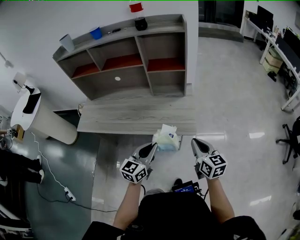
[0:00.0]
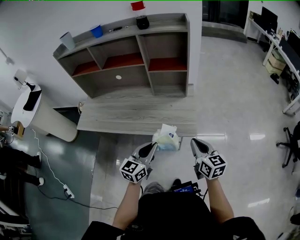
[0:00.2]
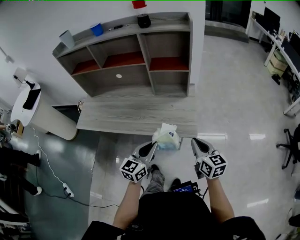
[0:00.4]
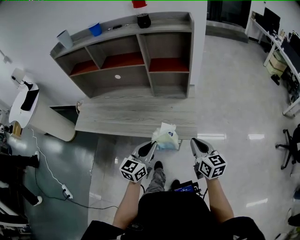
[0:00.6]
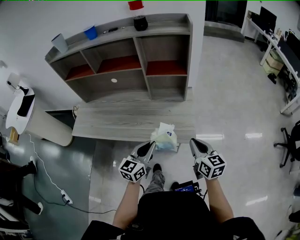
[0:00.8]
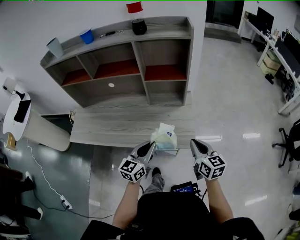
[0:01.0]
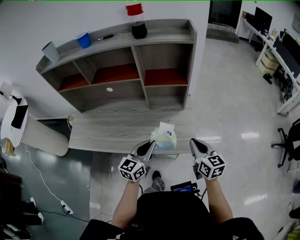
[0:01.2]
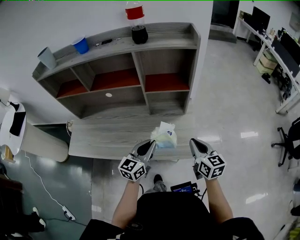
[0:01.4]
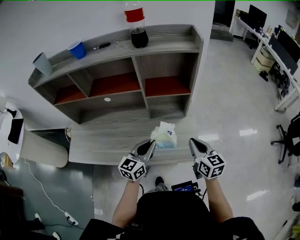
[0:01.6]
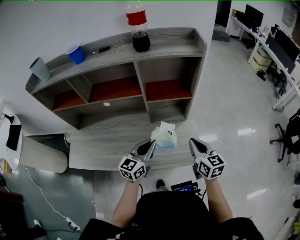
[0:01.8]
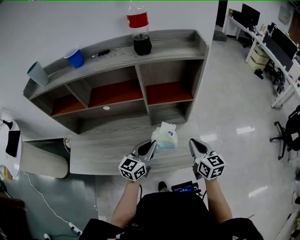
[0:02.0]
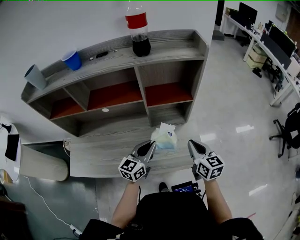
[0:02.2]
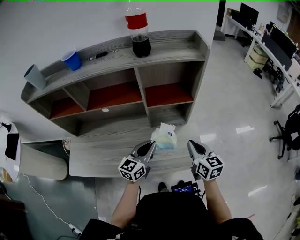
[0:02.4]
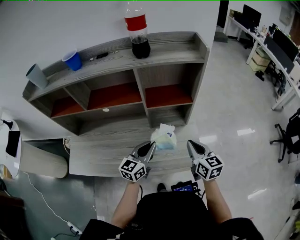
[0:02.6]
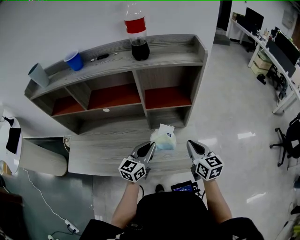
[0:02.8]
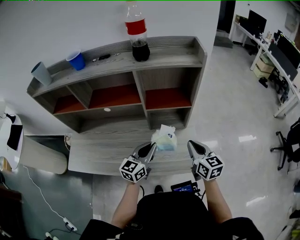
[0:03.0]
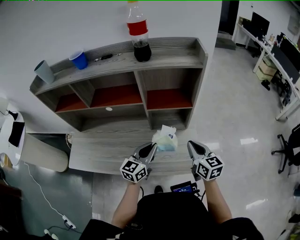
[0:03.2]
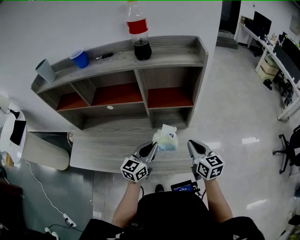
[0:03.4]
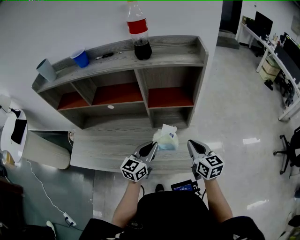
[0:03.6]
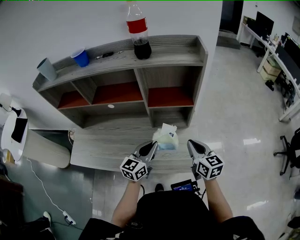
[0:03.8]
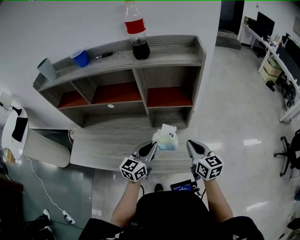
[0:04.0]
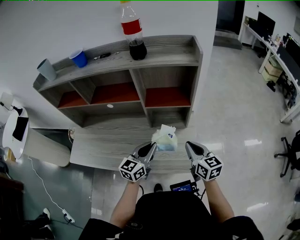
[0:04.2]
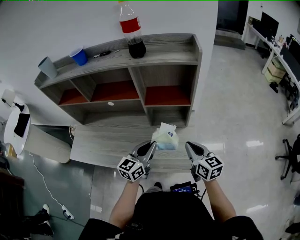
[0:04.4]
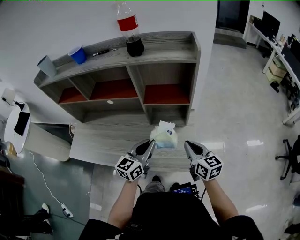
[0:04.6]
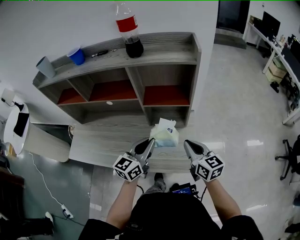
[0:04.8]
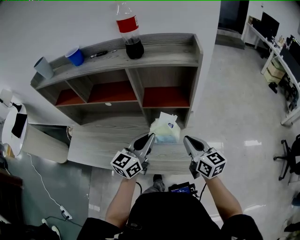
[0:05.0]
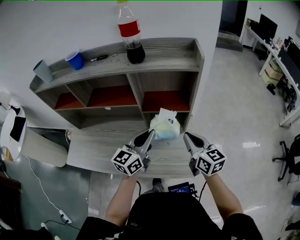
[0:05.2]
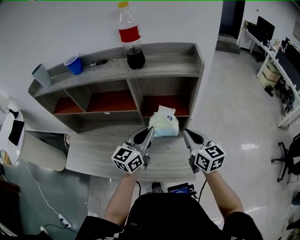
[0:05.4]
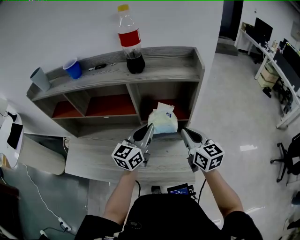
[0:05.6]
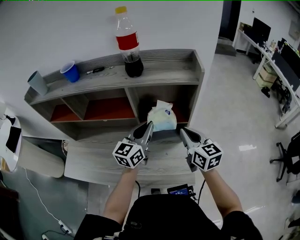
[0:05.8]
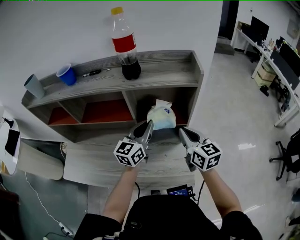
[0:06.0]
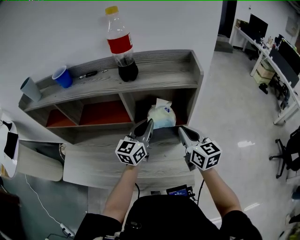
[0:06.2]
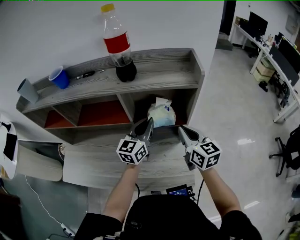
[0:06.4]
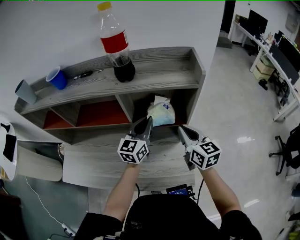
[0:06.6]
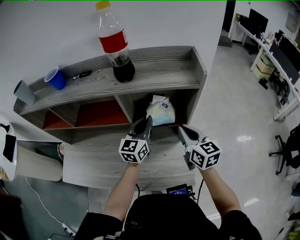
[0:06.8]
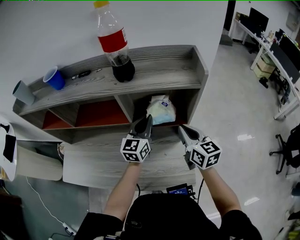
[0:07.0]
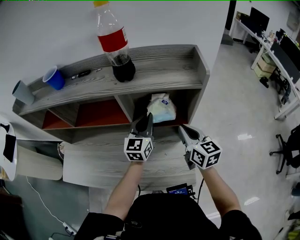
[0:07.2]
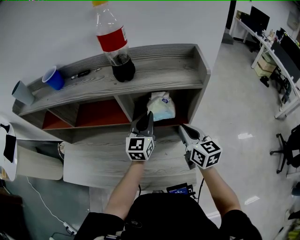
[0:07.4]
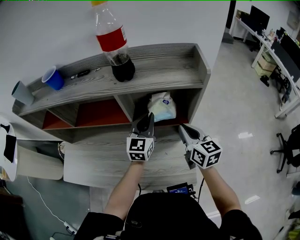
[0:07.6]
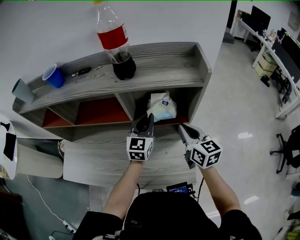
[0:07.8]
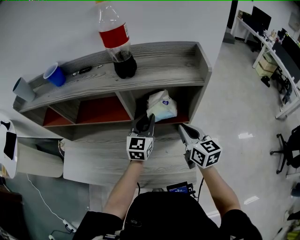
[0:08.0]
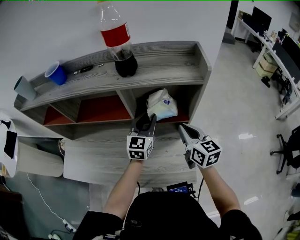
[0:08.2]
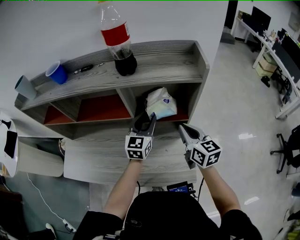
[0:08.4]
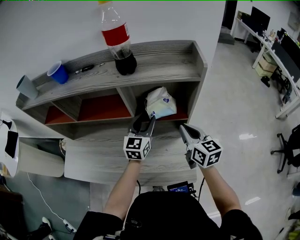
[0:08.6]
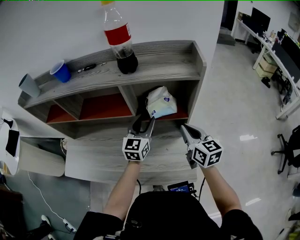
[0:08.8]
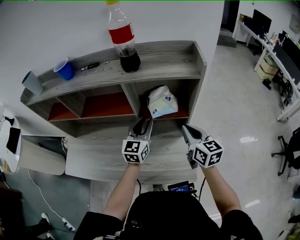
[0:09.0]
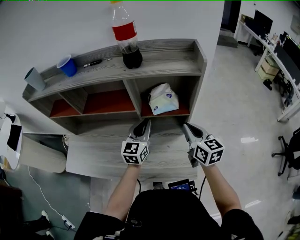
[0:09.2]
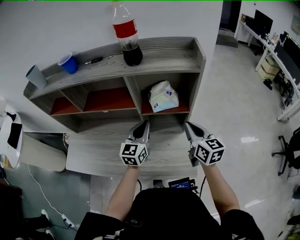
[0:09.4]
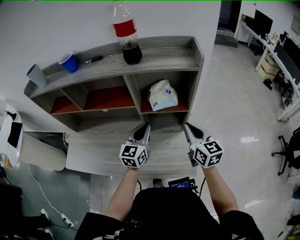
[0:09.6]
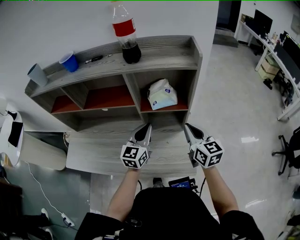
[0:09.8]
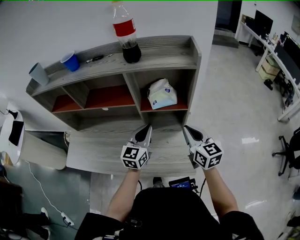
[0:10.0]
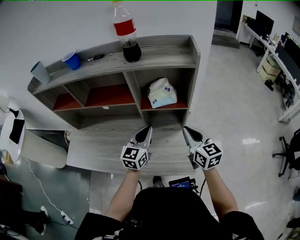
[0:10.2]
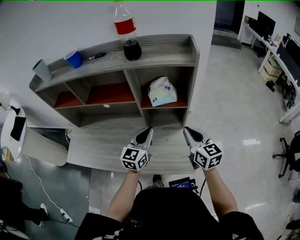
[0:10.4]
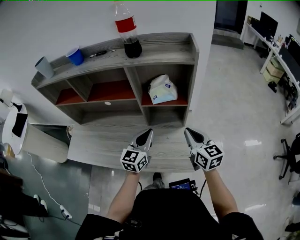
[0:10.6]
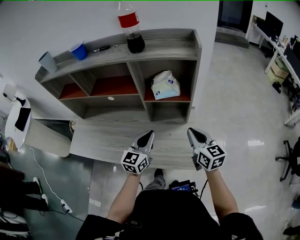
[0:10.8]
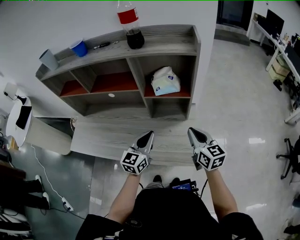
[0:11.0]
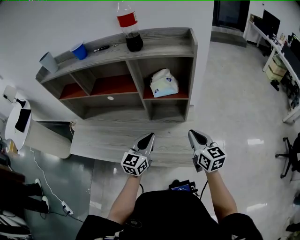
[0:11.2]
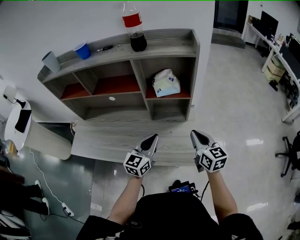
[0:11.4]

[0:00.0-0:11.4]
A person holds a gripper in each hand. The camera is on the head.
0:00.0 to 0:01.4: Both grippers move forward, approximately 20 cm.
0:01.4 to 0:02.8: Both grippers travel together forward, approximately 10 cm.
0:02.8 to 0:04.2: The grippers stay close to where they were, moving slightly.
0:04.2 to 0:05.6: The two grippers go some 15 cm forward and upward.
0:05.6 to 0:07.2: The left gripper is displaced forward by some 10 cm. Meanwhile the right gripper goes approximately 5 cm forward.
0:07.2 to 0:08.6: The left gripper opens.
0:08.6 to 0:10.0: The left gripper heads backward, covering some 10 cm, and closes its fingers, while the right gripper is displaced backward by about 5 cm.
0:10.0 to 0:11.4: The grippers both shift backward by approximately 10 cm.

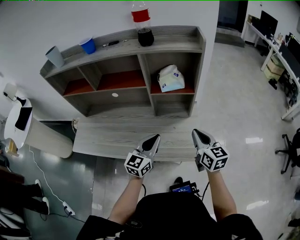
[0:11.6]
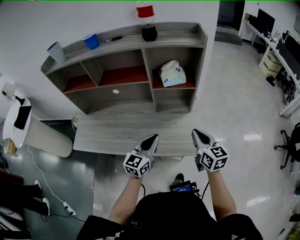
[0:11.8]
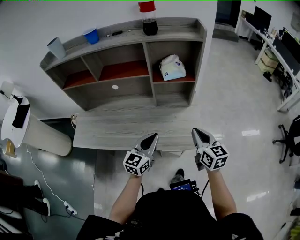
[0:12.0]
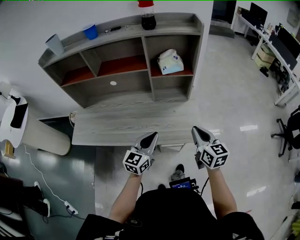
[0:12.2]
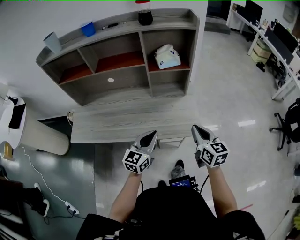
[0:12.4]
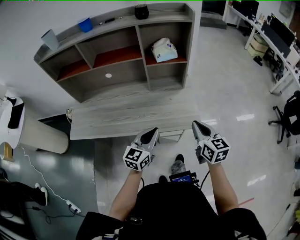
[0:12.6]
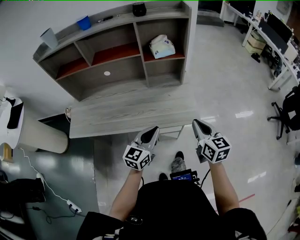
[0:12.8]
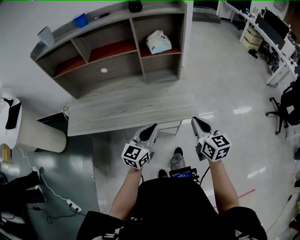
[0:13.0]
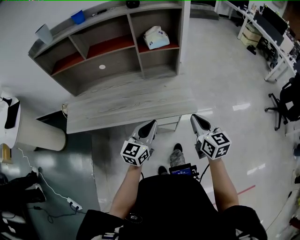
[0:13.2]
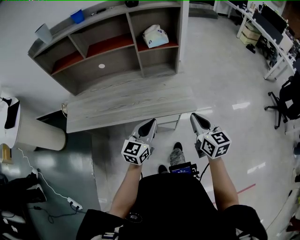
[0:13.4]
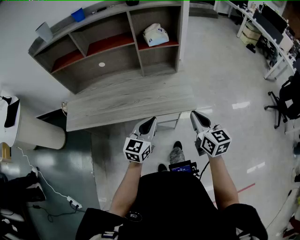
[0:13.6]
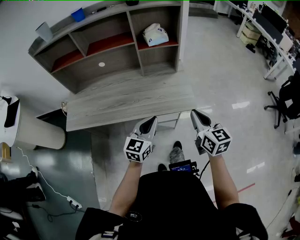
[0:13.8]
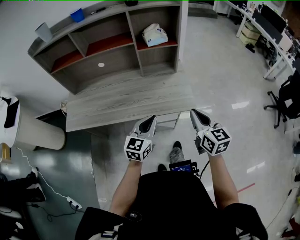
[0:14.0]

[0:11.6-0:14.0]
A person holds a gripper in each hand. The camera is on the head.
0:11.6 to 0:12.8: The grippers both shift backward by about 15 cm.
0:12.8 to 0:14.0: The grippers stay close to where they were, moving slightly.

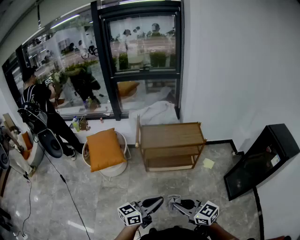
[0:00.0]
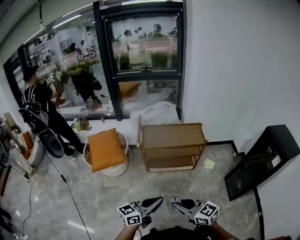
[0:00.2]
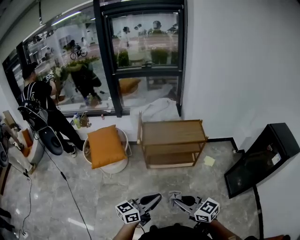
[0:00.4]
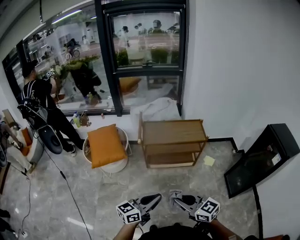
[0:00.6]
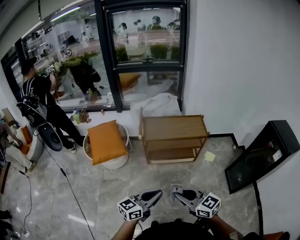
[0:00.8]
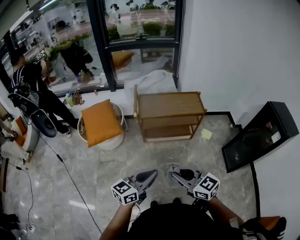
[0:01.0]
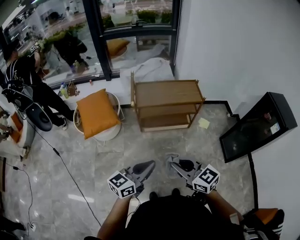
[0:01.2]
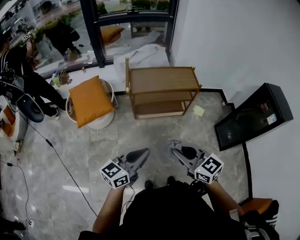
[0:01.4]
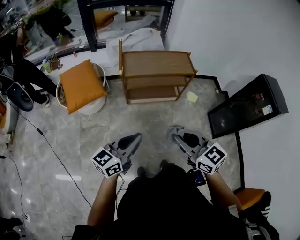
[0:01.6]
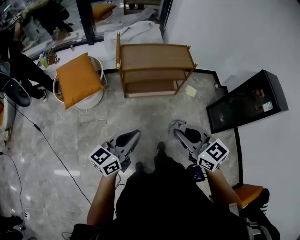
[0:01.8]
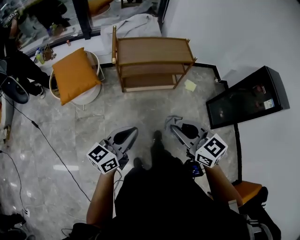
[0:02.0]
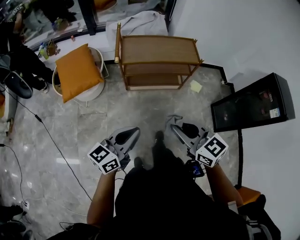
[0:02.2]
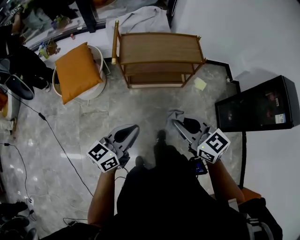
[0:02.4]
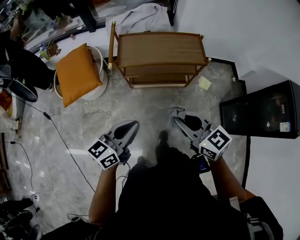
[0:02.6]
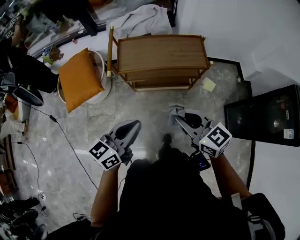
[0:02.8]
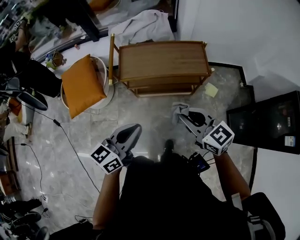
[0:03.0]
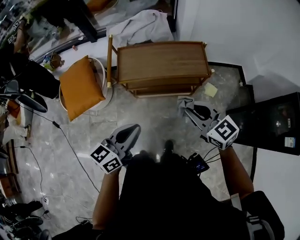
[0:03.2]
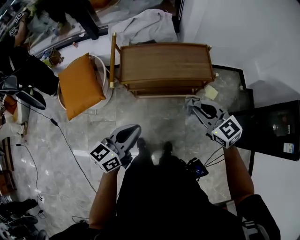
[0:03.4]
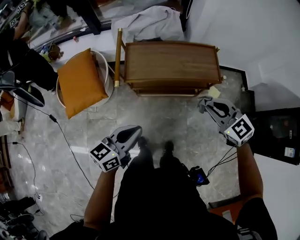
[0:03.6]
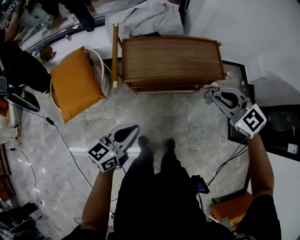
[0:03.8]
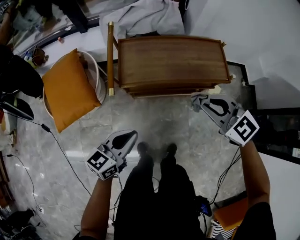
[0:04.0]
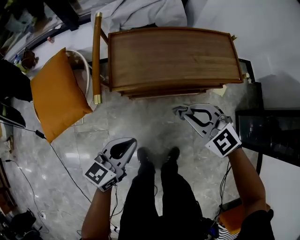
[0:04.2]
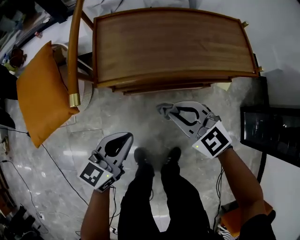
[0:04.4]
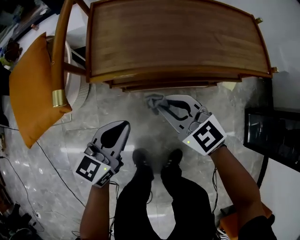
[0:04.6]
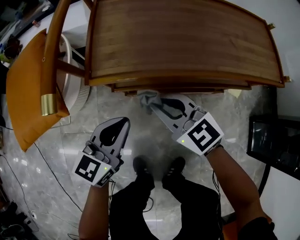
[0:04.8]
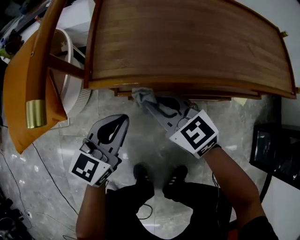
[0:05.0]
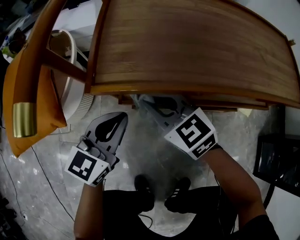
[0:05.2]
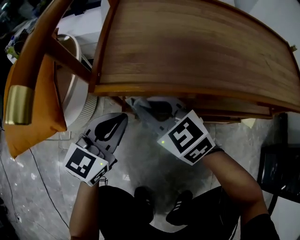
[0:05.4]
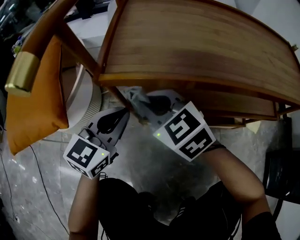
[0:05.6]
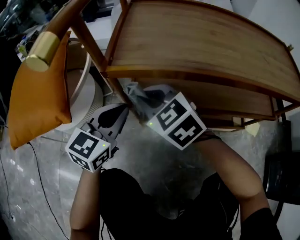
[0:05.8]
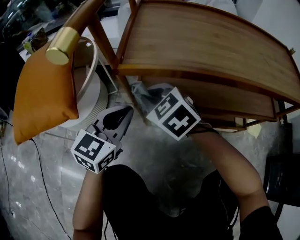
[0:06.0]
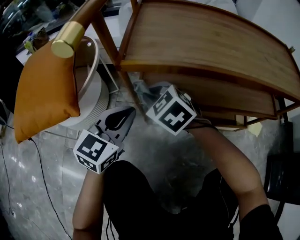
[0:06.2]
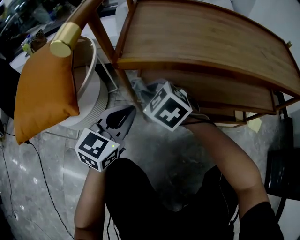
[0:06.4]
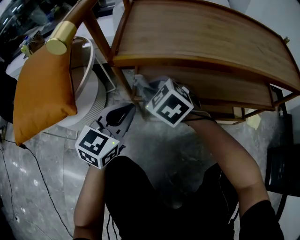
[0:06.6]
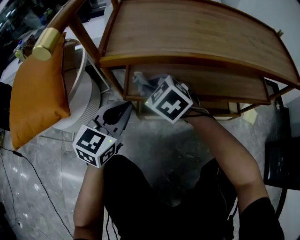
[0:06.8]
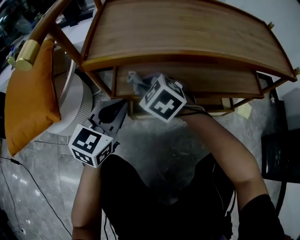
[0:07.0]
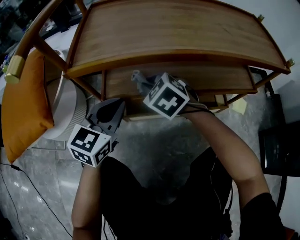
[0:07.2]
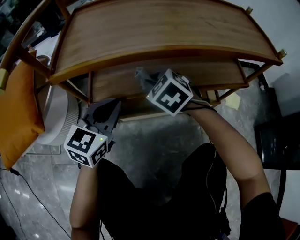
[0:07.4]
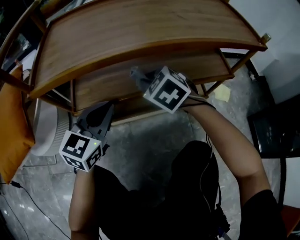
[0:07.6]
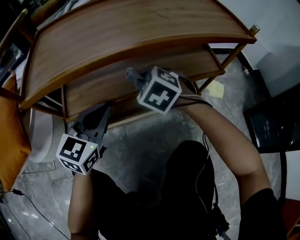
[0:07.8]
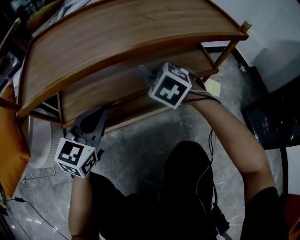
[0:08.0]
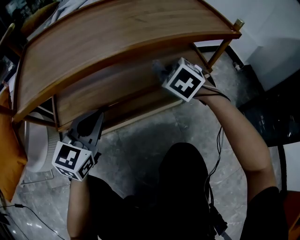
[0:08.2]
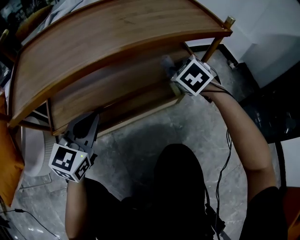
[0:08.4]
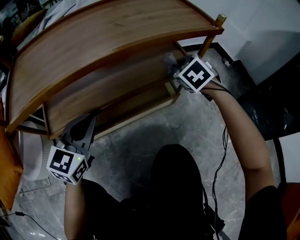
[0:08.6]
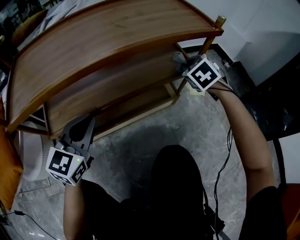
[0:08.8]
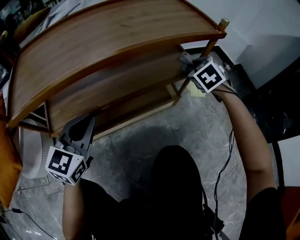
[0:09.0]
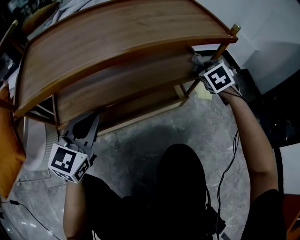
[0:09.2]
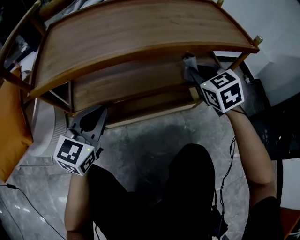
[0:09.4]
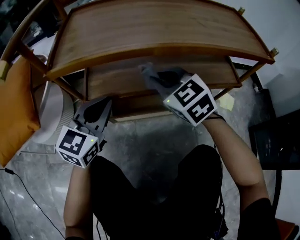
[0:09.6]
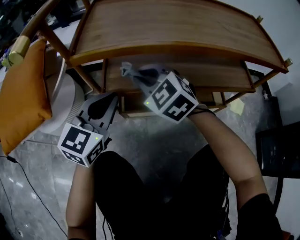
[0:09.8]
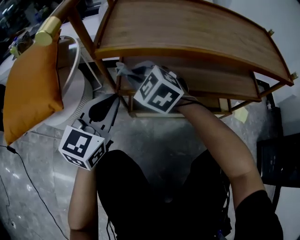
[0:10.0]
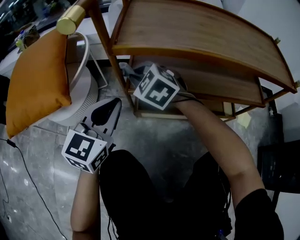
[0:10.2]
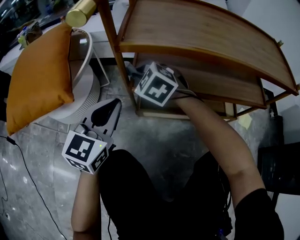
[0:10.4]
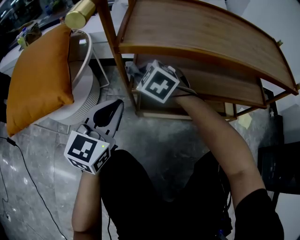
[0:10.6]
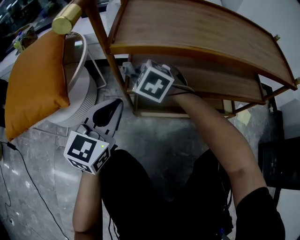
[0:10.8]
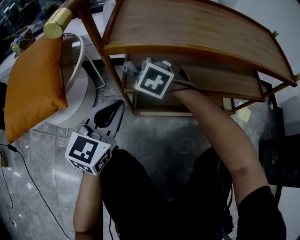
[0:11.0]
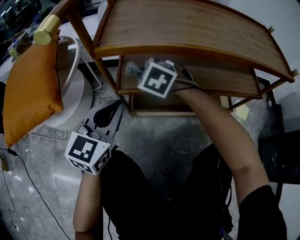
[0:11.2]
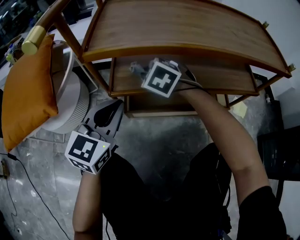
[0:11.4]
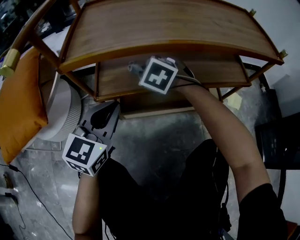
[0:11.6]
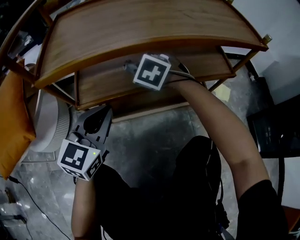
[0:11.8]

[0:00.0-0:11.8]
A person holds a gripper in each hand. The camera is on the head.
0:00.0 to 0:01.4: The left gripper shifts roughly 10 cm to the left.
0:01.4 to 0:03.0: Both grippers travel together forward and to the right, about 25 cm.
0:03.0 to 0:04.4: The two grippers go about 35 cm downward and forward.
0:04.4 to 0:06.0: The right gripper moves downward, to the left and forward, about 30 cm; the left gripper heads downward, forward and to the left, covering some 25 cm, and rotates roughly 30 degrees.
0:06.0 to 0:07.4: The right gripper moves to the right, about 20 cm. The left gripper heads to the right, covering some 10 cm.
0:07.4 to 0:08.8: The left gripper changes place by about 10 cm. Meanwhile the right gripper ends up roughly 40 cm from where it was, and swivels some 30 degrees.
0:08.8 to 0:10.4: The left gripper shifts by roughly 25 cm, and swivels about 30 degrees. Meanwhile the right gripper shifts by approximately 60 cm, and swivels roughly 50 degrees.
0:10.4 to 0:11.8: The right gripper goes about 25 cm to the right, and turns by roughly 20 degrees. The left gripper goes roughly 15 cm to the right.
